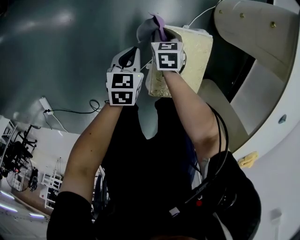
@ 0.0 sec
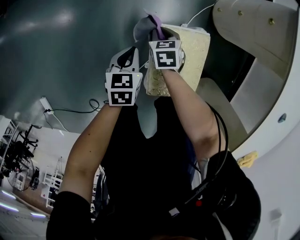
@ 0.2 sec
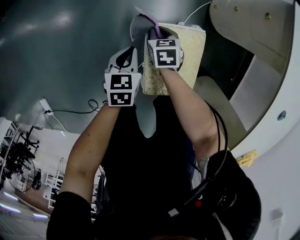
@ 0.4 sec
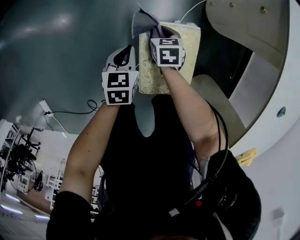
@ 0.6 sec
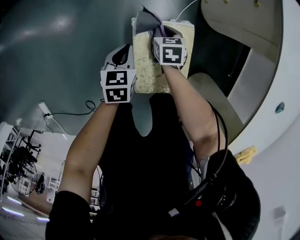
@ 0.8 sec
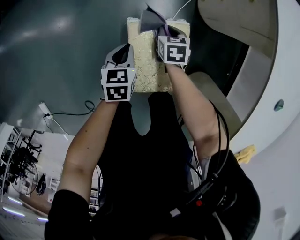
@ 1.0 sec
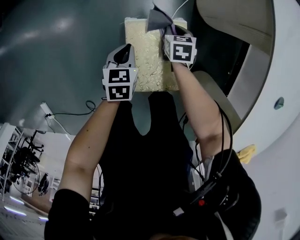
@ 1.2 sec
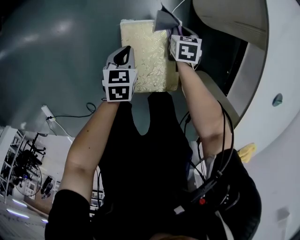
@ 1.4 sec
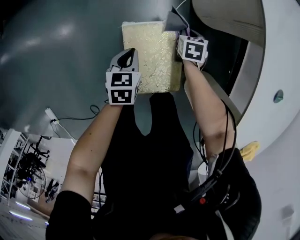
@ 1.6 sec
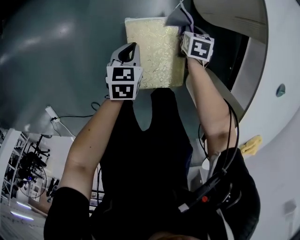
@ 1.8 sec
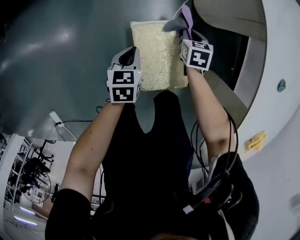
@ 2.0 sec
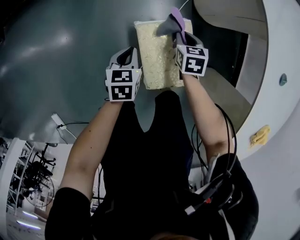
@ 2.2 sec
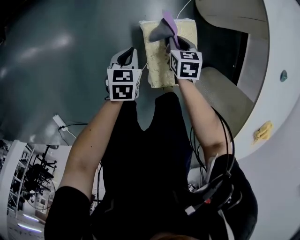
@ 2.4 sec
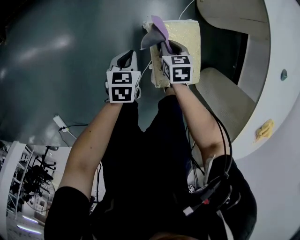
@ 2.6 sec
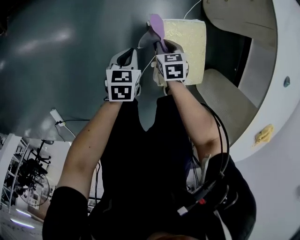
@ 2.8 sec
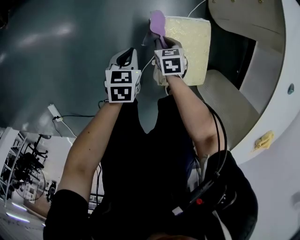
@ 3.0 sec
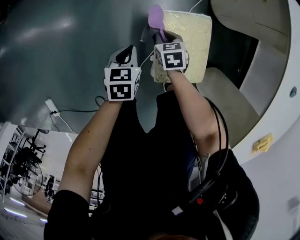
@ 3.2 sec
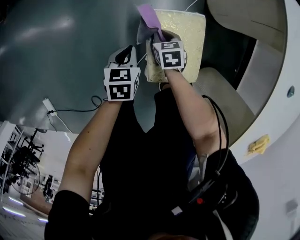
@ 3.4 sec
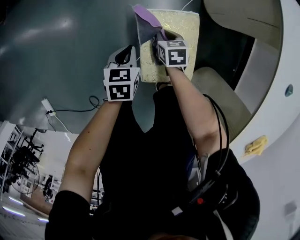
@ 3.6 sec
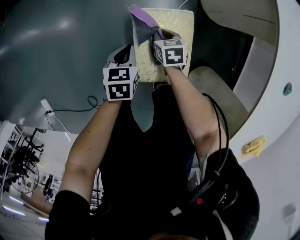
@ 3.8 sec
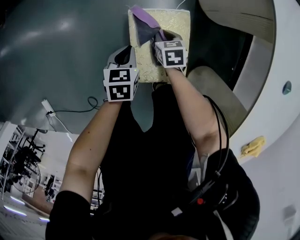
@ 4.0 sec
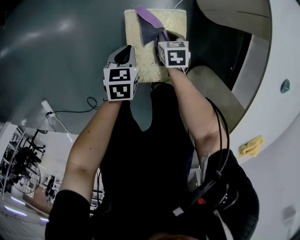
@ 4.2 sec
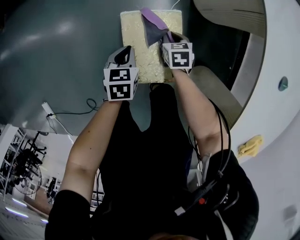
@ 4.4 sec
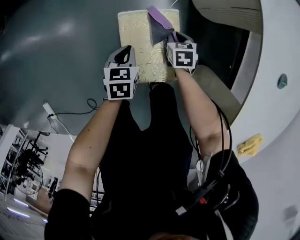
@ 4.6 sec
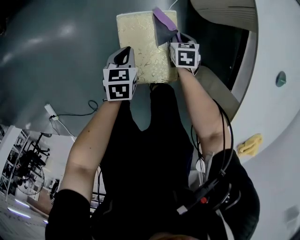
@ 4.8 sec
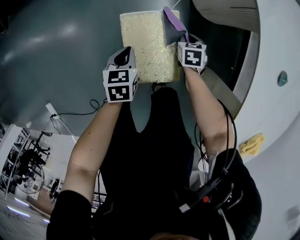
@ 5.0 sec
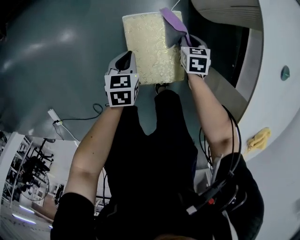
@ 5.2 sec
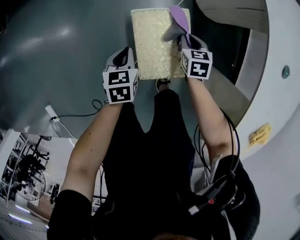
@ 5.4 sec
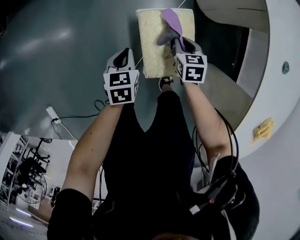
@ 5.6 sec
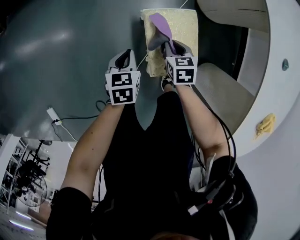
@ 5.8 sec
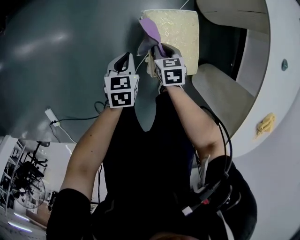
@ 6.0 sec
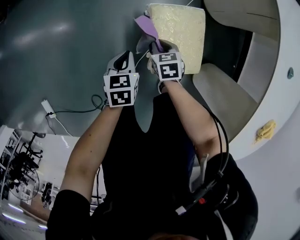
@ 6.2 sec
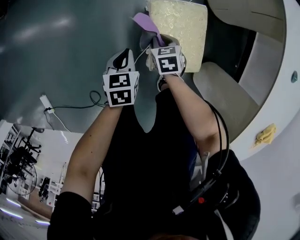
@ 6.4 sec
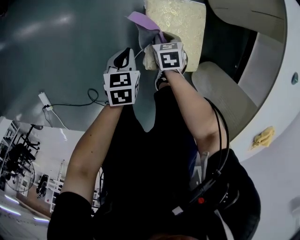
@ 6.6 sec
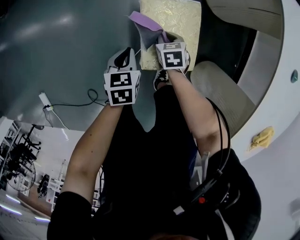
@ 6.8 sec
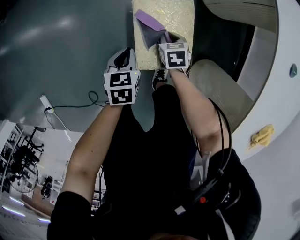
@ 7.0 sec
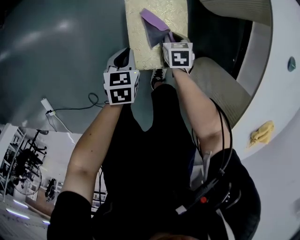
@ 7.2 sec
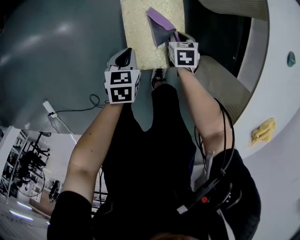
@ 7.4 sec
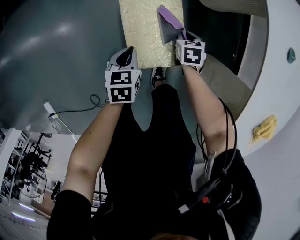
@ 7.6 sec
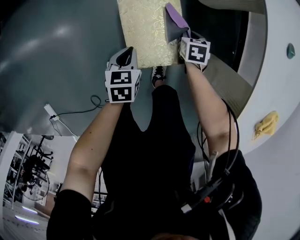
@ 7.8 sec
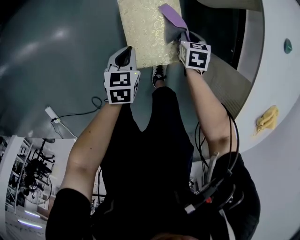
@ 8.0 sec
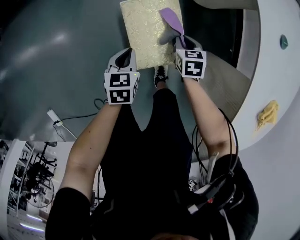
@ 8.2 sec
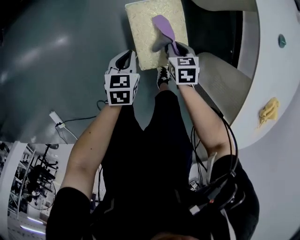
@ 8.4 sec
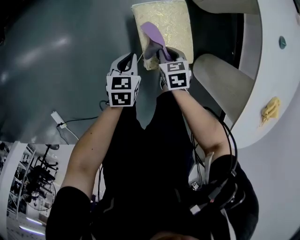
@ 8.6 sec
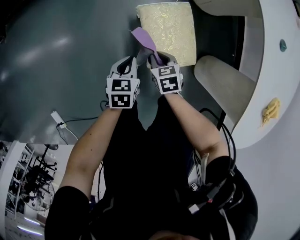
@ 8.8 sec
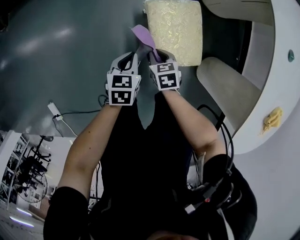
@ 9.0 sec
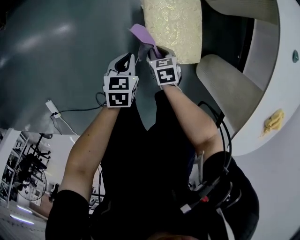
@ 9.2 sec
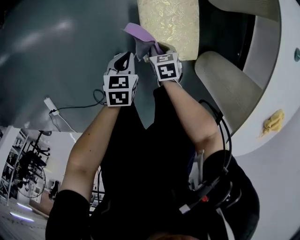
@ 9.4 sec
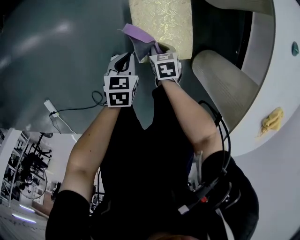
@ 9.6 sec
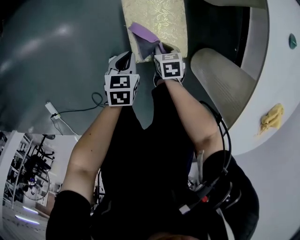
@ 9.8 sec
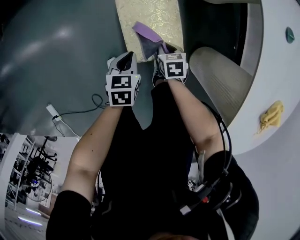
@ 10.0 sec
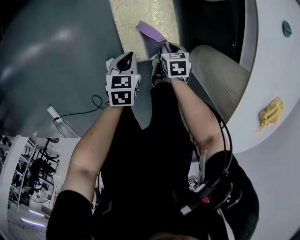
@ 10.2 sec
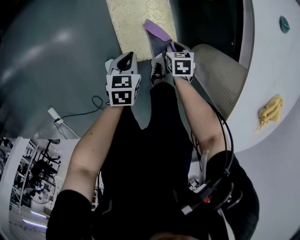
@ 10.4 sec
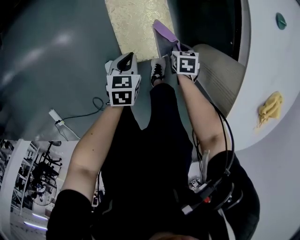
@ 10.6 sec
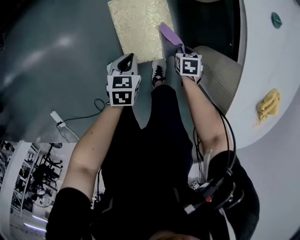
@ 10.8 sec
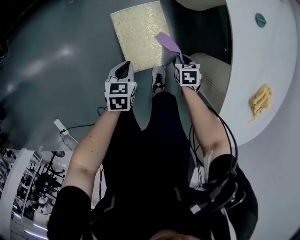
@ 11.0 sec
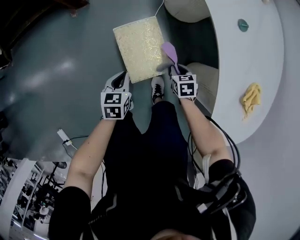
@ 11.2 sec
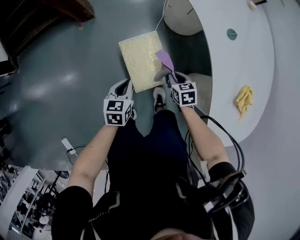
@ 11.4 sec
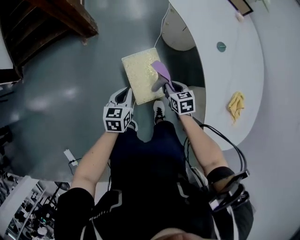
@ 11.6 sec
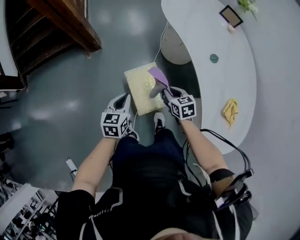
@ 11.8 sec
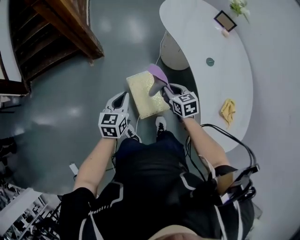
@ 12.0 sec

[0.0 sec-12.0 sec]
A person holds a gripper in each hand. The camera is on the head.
0.0 sec to 1.6 sec: The right gripper moves to the right, roughly 25 cm, while the left gripper heads to the right, covering some 15 cm.
1.6 sec to 3.0 sec: The left gripper heads to the left and backward, covering some 15 cm, while the right gripper moves to the left and backward, about 25 cm.
3.0 sec to 4.4 sec: The two grippers go about 15 cm to the right.
4.4 sec to 6.0 sec: The left gripper is displaced to the left and backward by roughly 15 cm, while the right gripper is displaced to the left, backward and upward by roughly 20 cm.
6.0 sec to 7.6 sec: The right gripper travels to the right by roughly 20 cm; the left gripper heads to the right, covering approximately 15 cm.
7.6 sec to 9.0 sec: The left gripper is displaced to the left by approximately 10 cm, while the right gripper goes approximately 25 cm to the left and backward.
9.0 sec to 10.4 sec: The left gripper is displaced to the right by some 15 cm. The right gripper goes roughly 20 cm to the right.
10.4 sec to 12.0 sec: The grippers both shift upward by about 40 cm. The left gripper changes its angle by roughly 30 degrees; the right gripper swivels some 30 degrees.

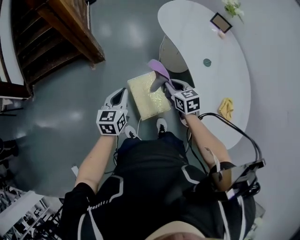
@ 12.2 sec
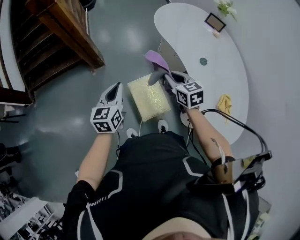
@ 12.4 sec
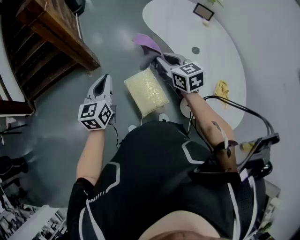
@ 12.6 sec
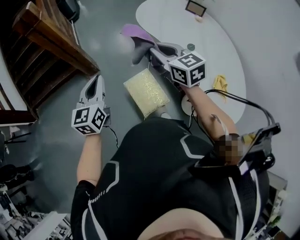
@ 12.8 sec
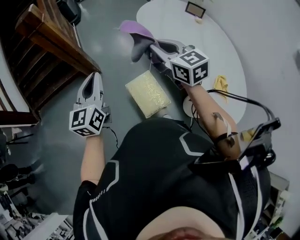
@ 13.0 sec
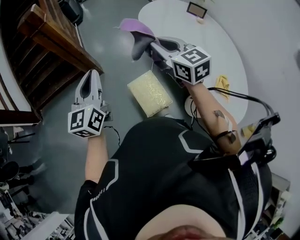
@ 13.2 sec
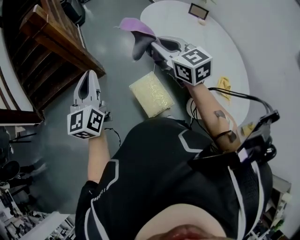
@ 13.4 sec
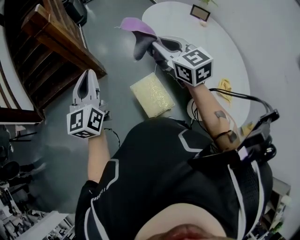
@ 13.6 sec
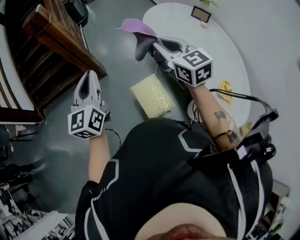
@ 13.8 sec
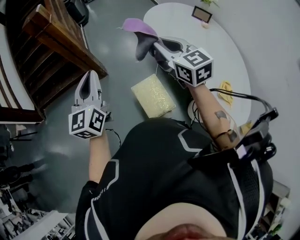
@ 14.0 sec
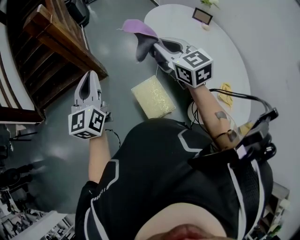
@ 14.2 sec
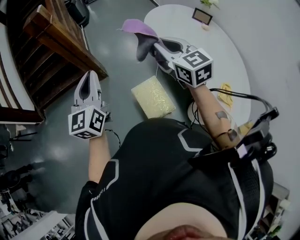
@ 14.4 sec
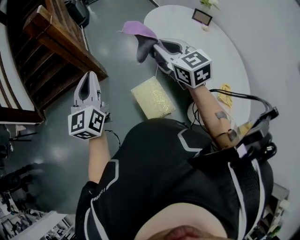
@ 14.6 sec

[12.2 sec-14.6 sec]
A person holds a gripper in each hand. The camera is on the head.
12.2 sec to 13.4 sec: The grippers both shift upward by roughly 25 cm. The left gripper changes its angle by roughly 30 degrees. Meanwhile the right gripper turns by approximately 30 degrees.
13.4 sec to 14.6 sec: The grippers stay close to where they were, moving slightly.

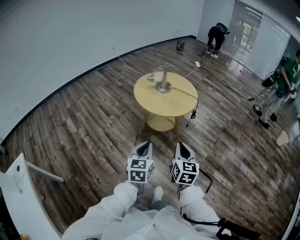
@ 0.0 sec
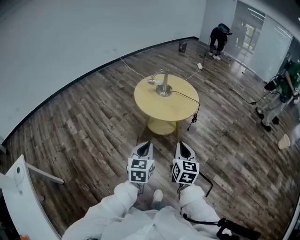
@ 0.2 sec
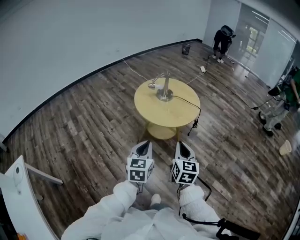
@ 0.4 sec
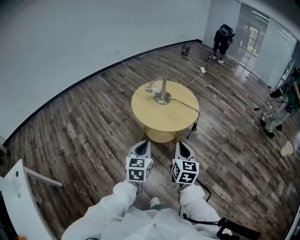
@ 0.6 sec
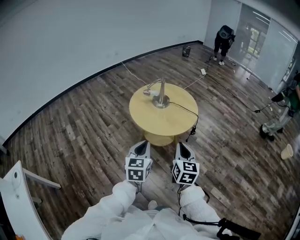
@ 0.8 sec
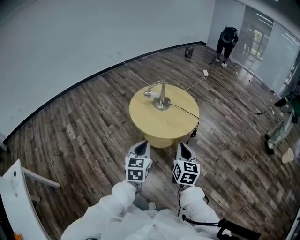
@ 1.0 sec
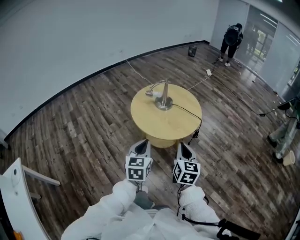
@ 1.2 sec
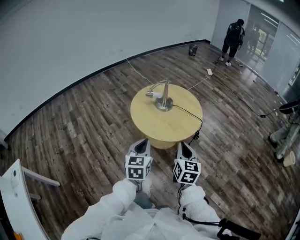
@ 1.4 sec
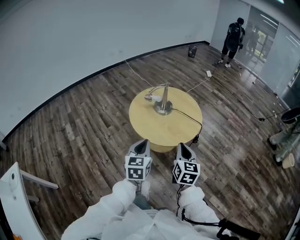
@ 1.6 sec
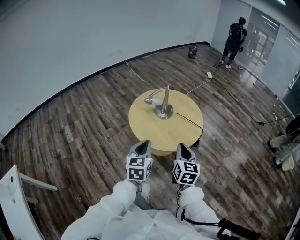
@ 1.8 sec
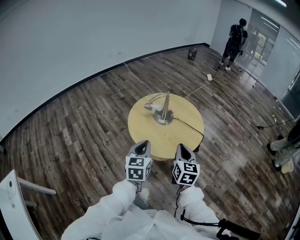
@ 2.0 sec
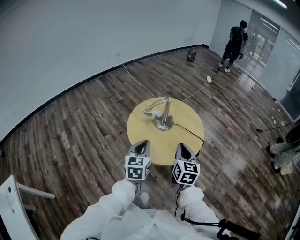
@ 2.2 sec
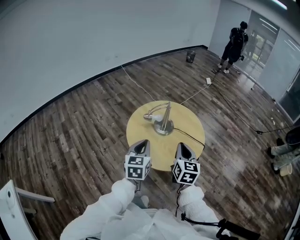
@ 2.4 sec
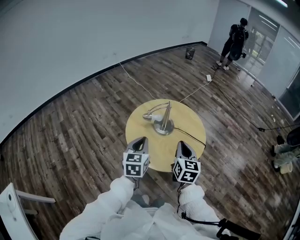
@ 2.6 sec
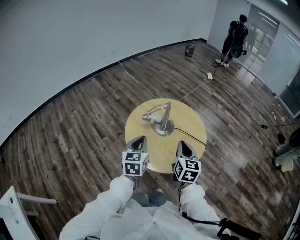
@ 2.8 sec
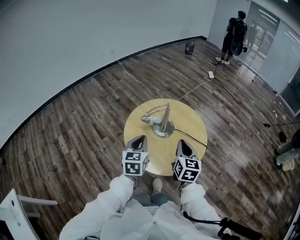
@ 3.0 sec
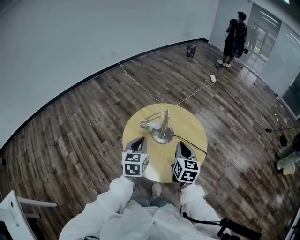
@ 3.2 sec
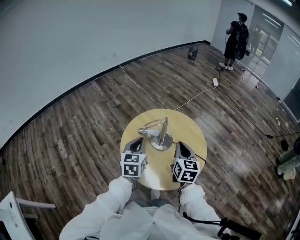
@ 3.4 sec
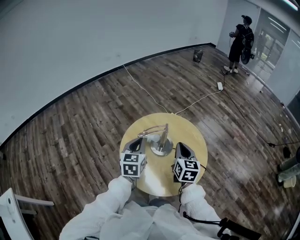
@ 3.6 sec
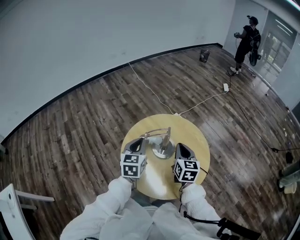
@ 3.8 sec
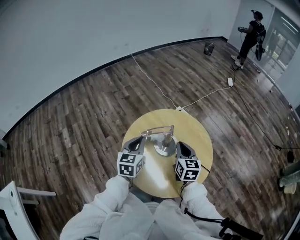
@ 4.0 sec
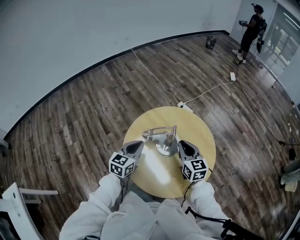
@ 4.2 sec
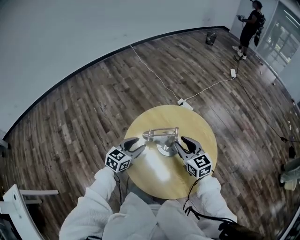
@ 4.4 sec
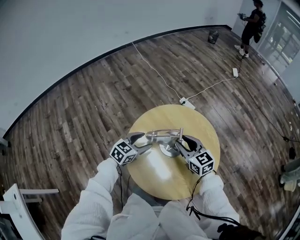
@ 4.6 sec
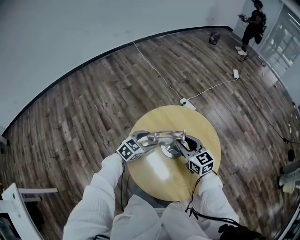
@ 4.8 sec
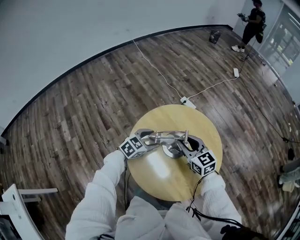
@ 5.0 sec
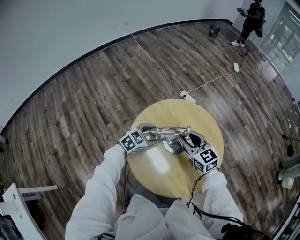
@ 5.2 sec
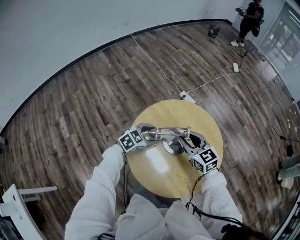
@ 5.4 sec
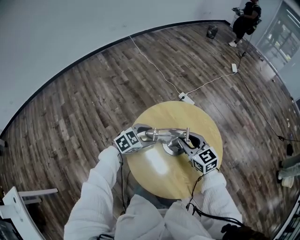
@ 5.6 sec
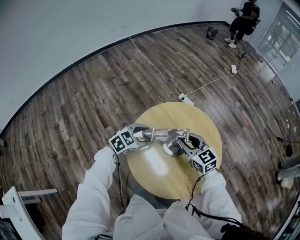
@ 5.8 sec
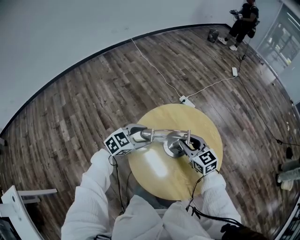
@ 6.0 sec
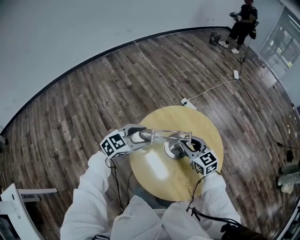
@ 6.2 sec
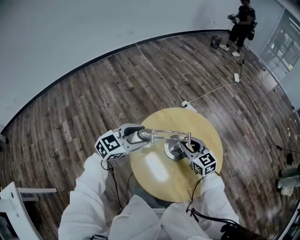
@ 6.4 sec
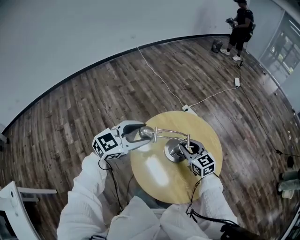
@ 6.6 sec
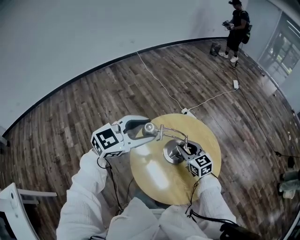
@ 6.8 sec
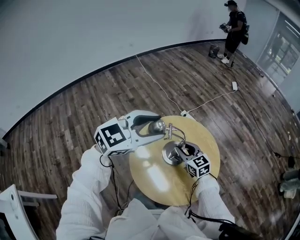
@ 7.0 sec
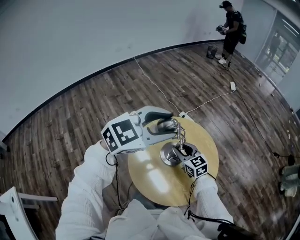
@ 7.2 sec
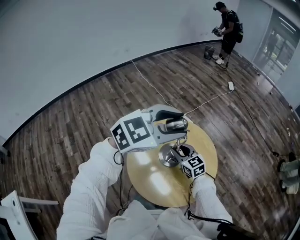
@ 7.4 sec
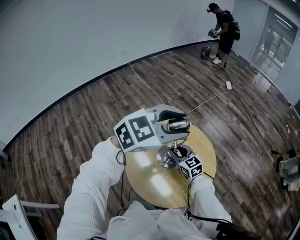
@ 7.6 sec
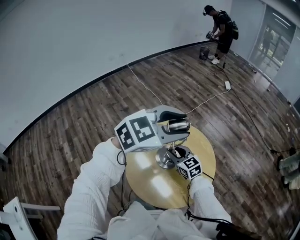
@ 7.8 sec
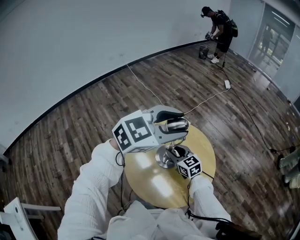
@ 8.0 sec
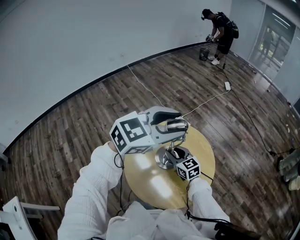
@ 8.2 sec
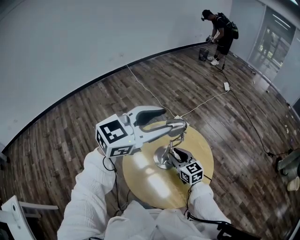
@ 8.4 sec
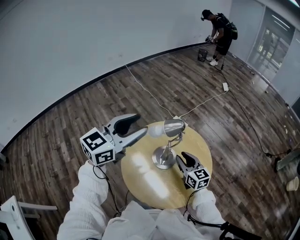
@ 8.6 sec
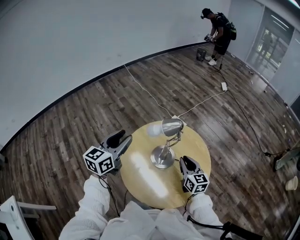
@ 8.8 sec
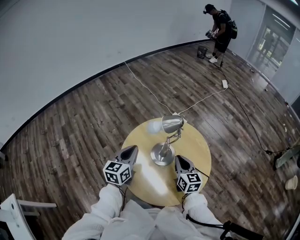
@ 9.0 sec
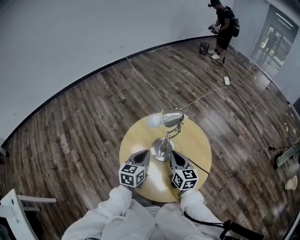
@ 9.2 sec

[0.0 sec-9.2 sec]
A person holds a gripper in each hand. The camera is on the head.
0.0 sec to 1.6 sec: The grippers both shift forward by about 25 cm.
1.6 sec to 3.0 sec: Both grippers travel together forward, about 25 cm.
3.0 sec to 4.6 sec: The right gripper is displaced forward by about 20 cm, swivels some 40 degrees, and opens. The left gripper heads forward and downward, covering roughly 25 cm, turns by about 30 degrees, and opens up.
4.6 sec to 6.2 sec: The left gripper goes roughly 5 cm upward.
6.2 sec to 7.6 sec: The left gripper heads upward and to the right, covering about 30 cm, and turns by approximately 20 degrees.
7.6 sec to 9.2 sec: The left gripper goes some 25 cm downward, swivels approximately 60 degrees, and closes. The right gripper heads to the right and backward, covering roughly 10 cm, rotates roughly 30 degrees, and closes.
